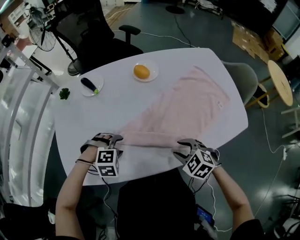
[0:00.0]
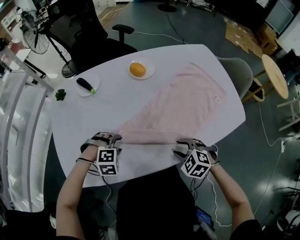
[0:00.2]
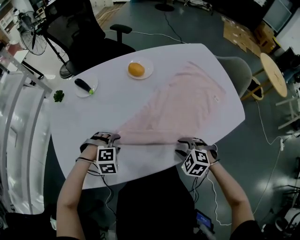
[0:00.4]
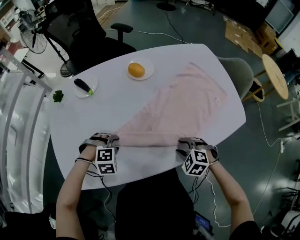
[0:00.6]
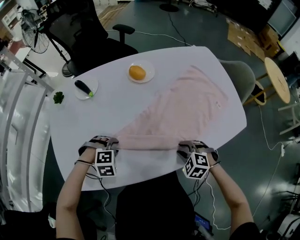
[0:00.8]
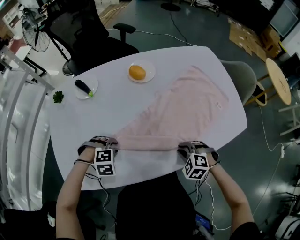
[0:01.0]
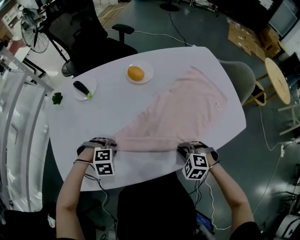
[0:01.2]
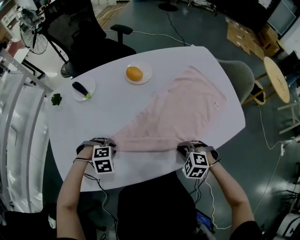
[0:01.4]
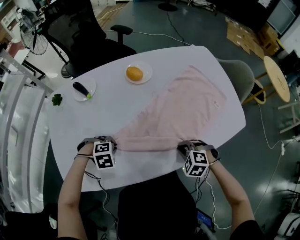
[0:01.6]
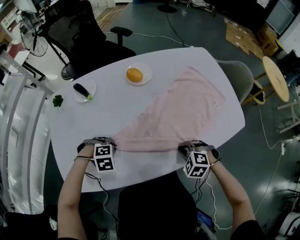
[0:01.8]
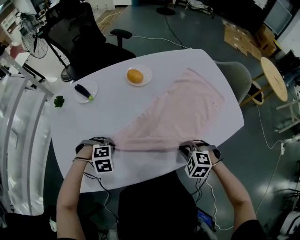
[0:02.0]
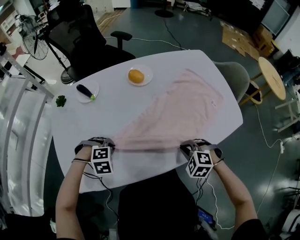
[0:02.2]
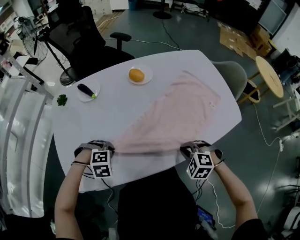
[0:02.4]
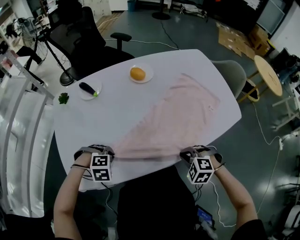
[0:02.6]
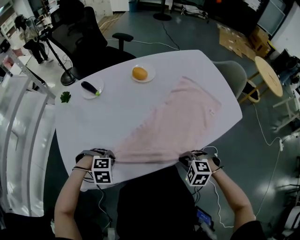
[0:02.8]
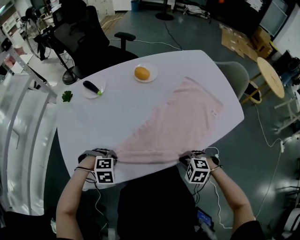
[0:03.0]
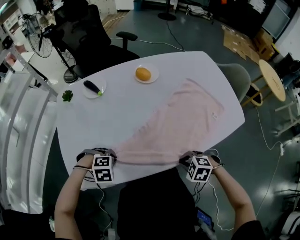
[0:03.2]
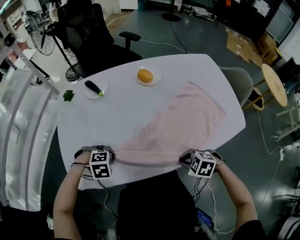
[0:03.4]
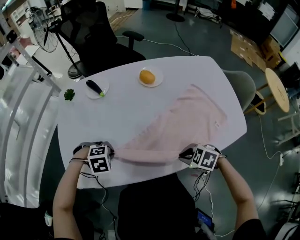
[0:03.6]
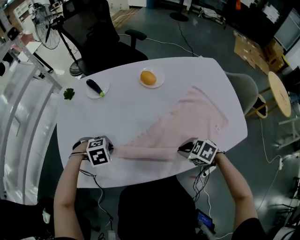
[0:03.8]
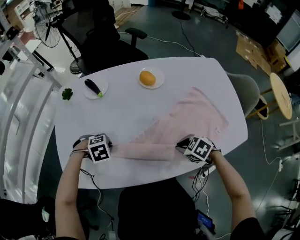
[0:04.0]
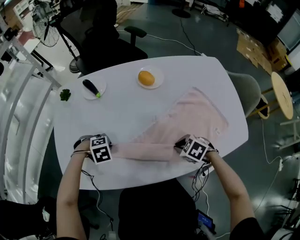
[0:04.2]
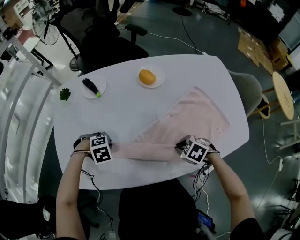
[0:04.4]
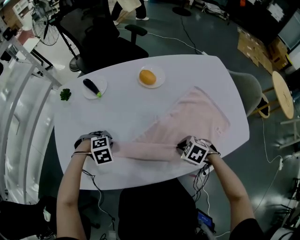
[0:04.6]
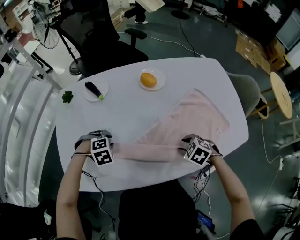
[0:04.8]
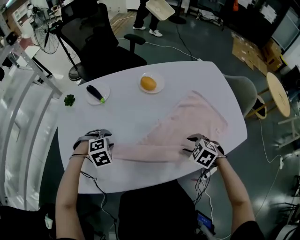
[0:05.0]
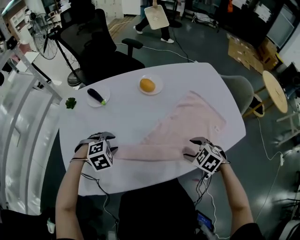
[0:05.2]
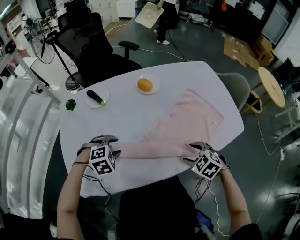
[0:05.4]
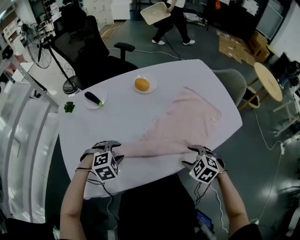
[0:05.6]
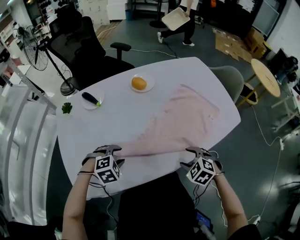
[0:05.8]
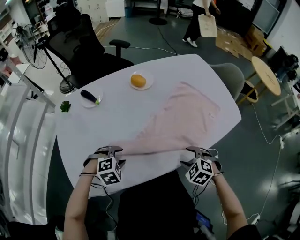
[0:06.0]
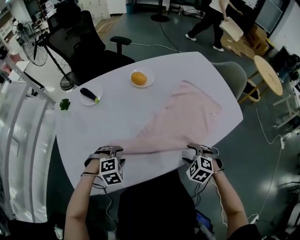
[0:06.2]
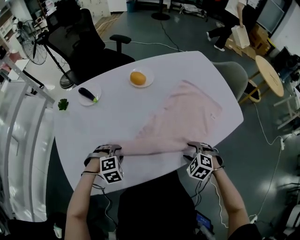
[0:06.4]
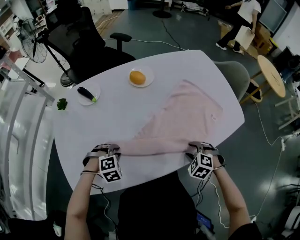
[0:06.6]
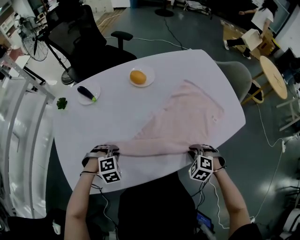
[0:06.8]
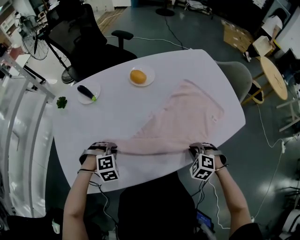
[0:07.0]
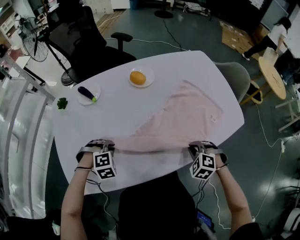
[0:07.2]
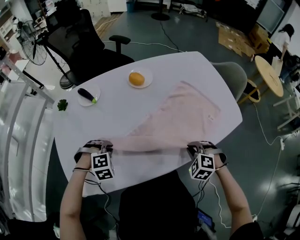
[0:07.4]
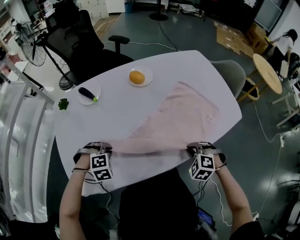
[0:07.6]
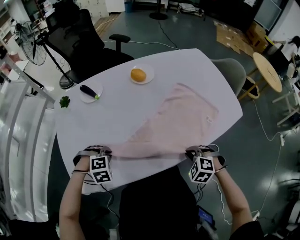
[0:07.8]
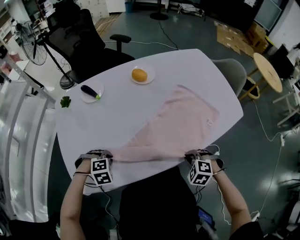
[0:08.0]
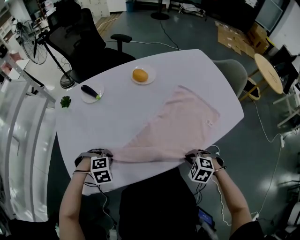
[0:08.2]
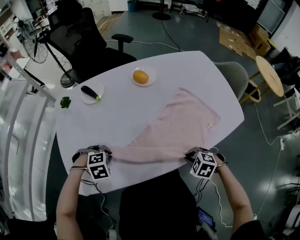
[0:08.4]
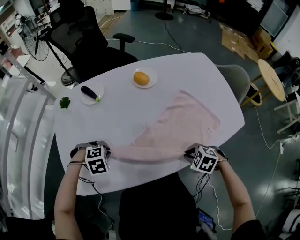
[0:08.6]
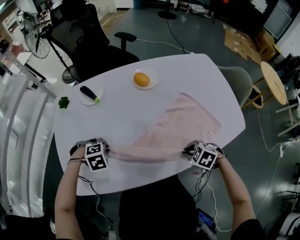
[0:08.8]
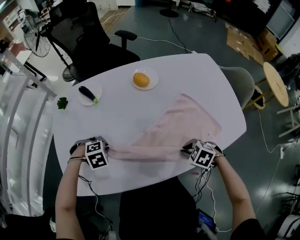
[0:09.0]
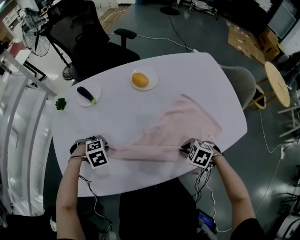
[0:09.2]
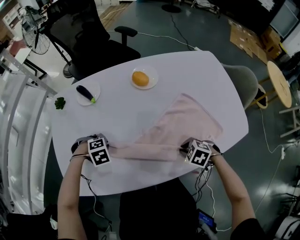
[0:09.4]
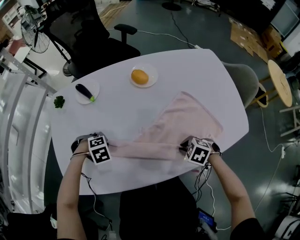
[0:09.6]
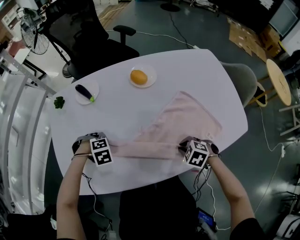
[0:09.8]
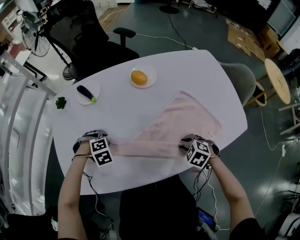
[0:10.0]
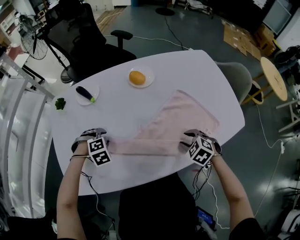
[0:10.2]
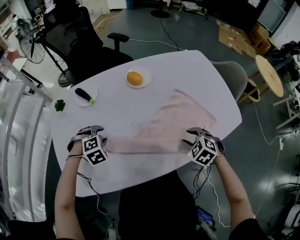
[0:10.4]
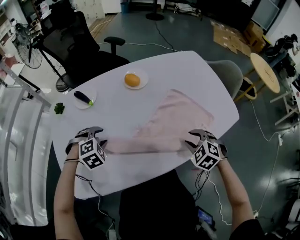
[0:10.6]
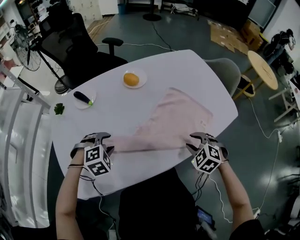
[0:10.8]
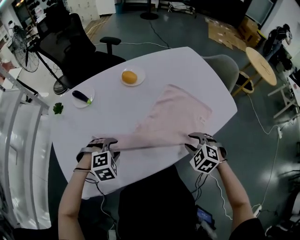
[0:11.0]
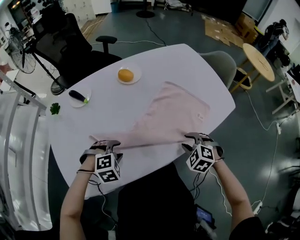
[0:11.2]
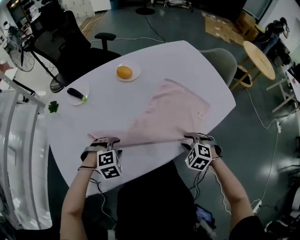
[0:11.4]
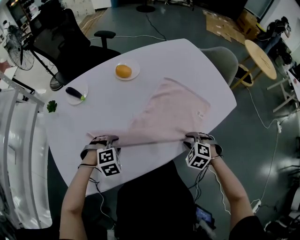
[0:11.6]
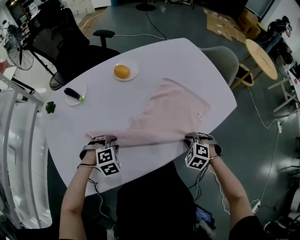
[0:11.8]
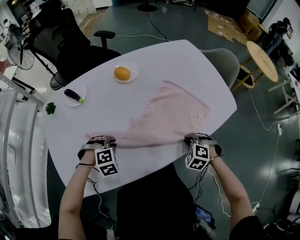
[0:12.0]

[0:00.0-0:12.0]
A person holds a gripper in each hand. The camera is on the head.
0:00.0 to 0:01.6: The left gripper moves roughly 5 cm, and closes up. The right gripper travels downward by roughly 5 cm, and closes.
0:01.6 to 0:03.0: The left gripper ends up about 10 cm from where it was; the right gripper shifts by roughly 10 cm.
0:03.0 to 0:04.4: The right gripper ends up some 15 cm from where it was; the left gripper ends up some 10 cm from where it was, and changes its angle by some 20 degrees.
0:04.4 to 0:06.0: The right gripper changes place by some 10 cm, turns by some 30 degrees, and opens up. Meanwhile the left gripper moves roughly 10 cm, swivels about 20 degrees, and opens up.
0:06.0 to 0:07.6: The right gripper closes, while the left gripper moves approximately 5 cm, and closes.
0:07.6 to 0:09.0: The right gripper shifts by approximately 5 cm, and swivels about 30 degrees.
0:09.0 to 0:10.4: The right gripper ends up about 5 cm from where it was, swivels approximately 20 degrees, and opens up, while the left gripper ends up some 5 cm from where it was, and opens.
0:10.4 to 0:12.0: The right gripper is displaced to the right and downward by some 5 cm, and closes up; the left gripper goes approximately 10 cm to the right, and closes.

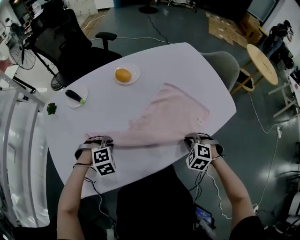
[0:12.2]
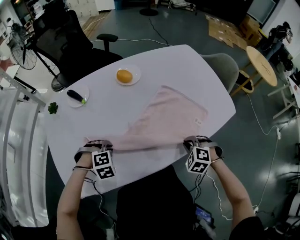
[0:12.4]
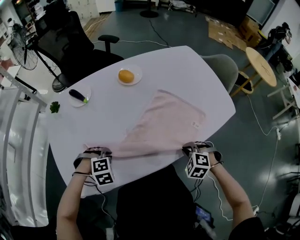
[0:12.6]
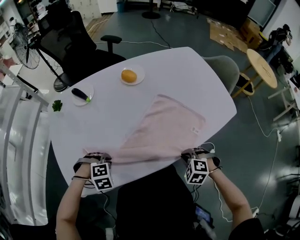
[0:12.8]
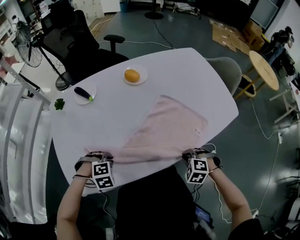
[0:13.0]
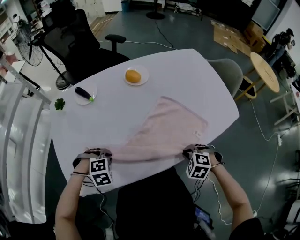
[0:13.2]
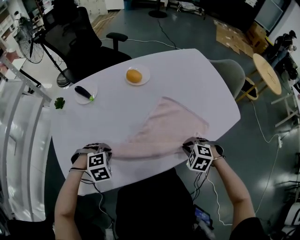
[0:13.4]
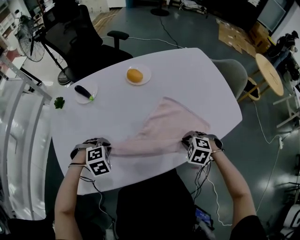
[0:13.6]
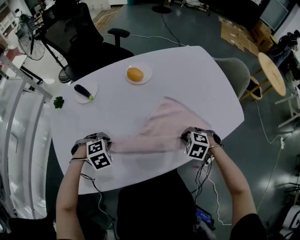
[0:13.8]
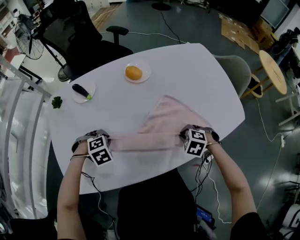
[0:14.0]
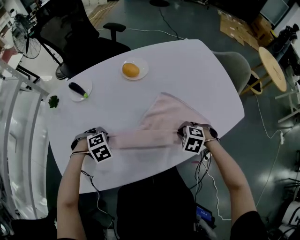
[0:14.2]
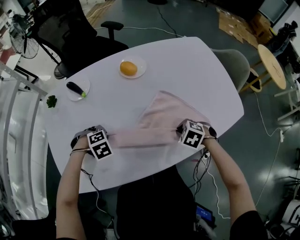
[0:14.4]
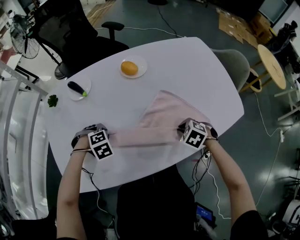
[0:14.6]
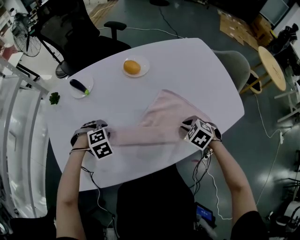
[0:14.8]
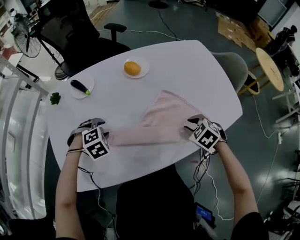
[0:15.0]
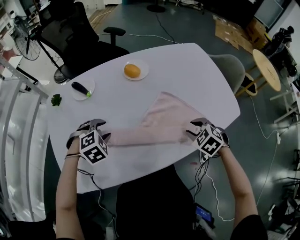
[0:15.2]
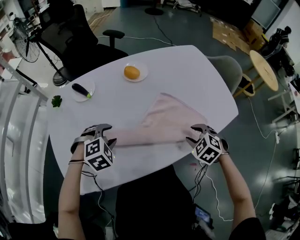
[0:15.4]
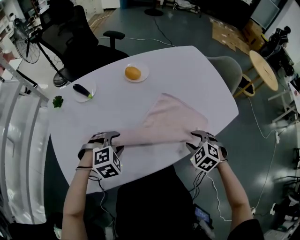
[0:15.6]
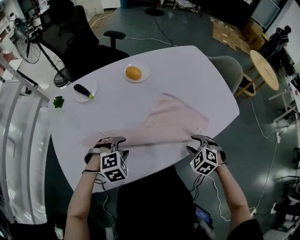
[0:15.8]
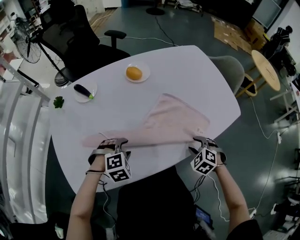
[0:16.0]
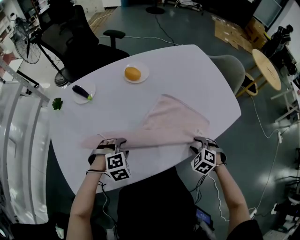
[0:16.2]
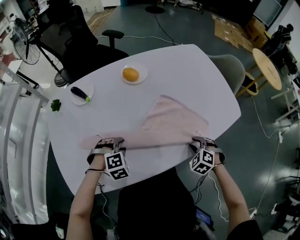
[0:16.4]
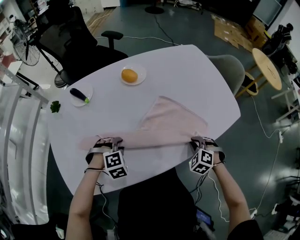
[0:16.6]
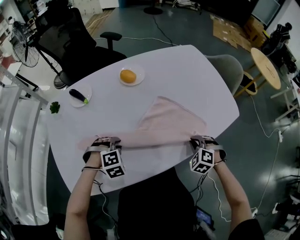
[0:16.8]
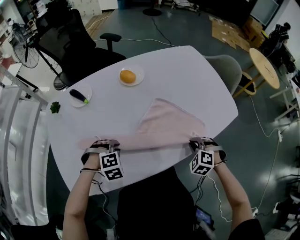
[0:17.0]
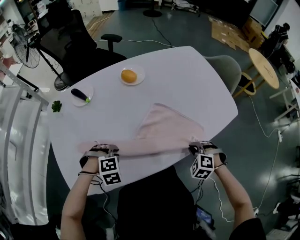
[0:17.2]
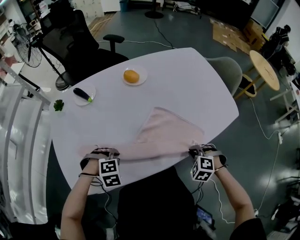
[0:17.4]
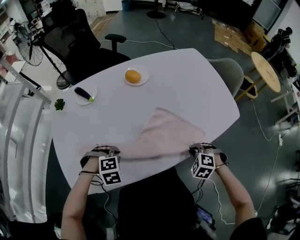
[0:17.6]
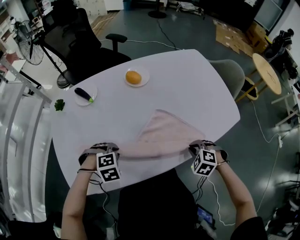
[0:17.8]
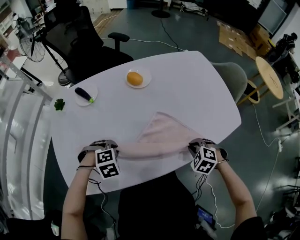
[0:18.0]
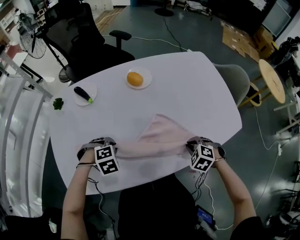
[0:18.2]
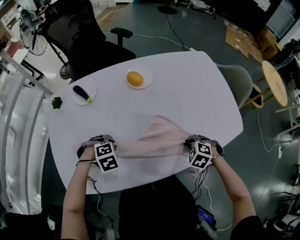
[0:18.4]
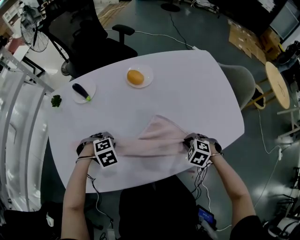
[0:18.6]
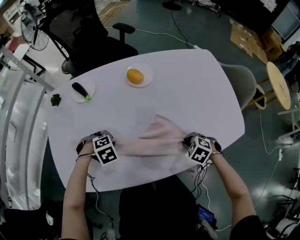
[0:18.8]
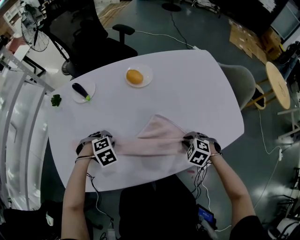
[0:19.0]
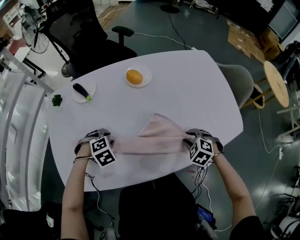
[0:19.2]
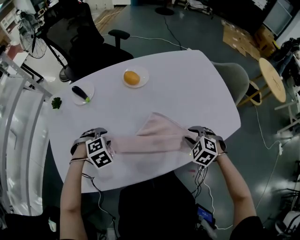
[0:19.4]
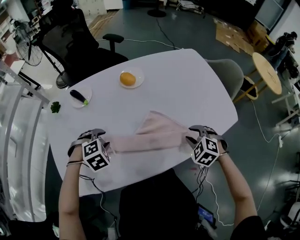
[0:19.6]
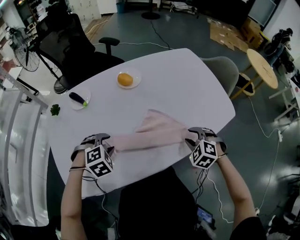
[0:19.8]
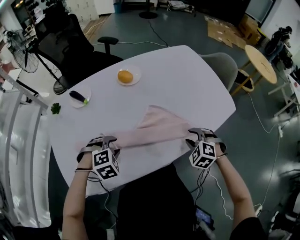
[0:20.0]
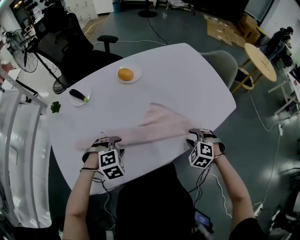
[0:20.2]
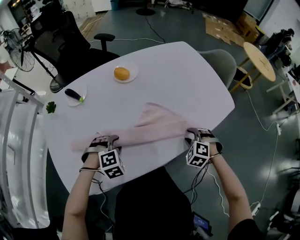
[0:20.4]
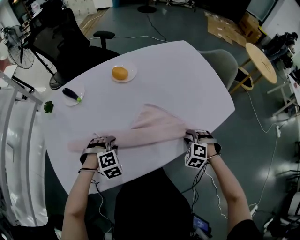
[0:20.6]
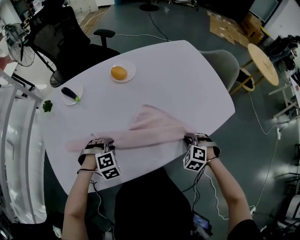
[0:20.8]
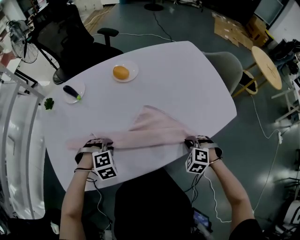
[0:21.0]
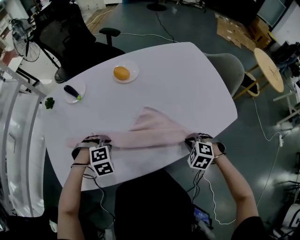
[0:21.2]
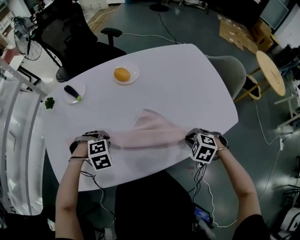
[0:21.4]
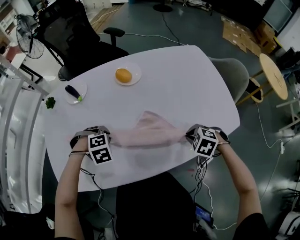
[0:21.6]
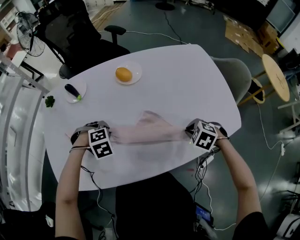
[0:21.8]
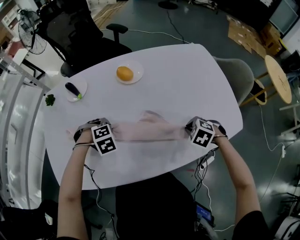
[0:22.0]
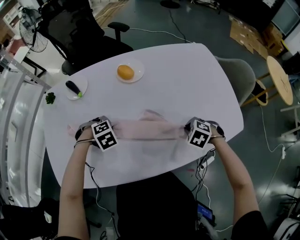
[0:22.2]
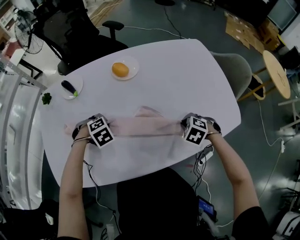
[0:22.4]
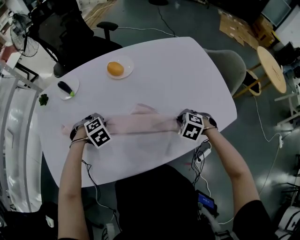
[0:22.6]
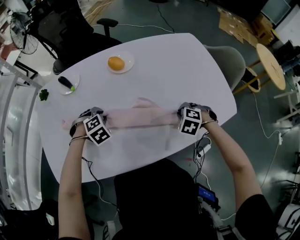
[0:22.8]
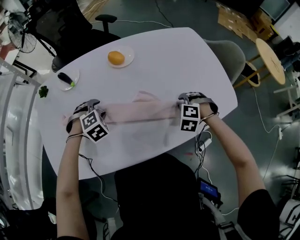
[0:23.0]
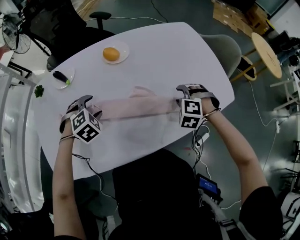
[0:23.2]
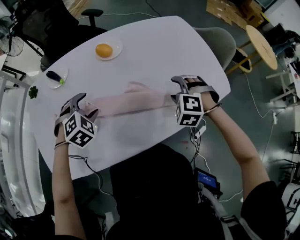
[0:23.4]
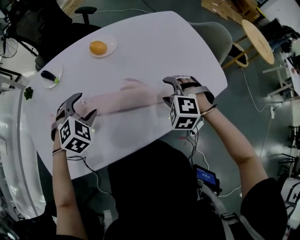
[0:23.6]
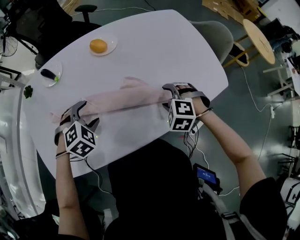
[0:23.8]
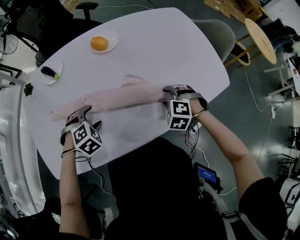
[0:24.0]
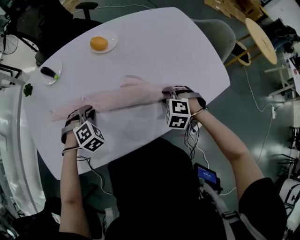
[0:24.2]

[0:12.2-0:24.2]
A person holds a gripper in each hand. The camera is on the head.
0:13.8 to 0:15.2: The left gripper shifts by about 5 cm, and opens its fingers. Meanwhile the right gripper goes about 5 cm upward, rotates some 20 degrees, and opens.
0:15.2 to 0:16.6: The left gripper shifts some 10 cm to the right and downward. The right gripper travels downward and to the right by about 10 cm.
0:16.6 to 0:18.2: The right gripper moves about 5 cm backward and comes back. The left gripper moves roughly 10 cm backward and comes back.
0:18.2 to 0:19.8: The left gripper is displaced upward by some 5 cm; the right gripper opens its fingers.
0:19.8 to 0:21.2: The two grippers go approximately 5 cm downward. The left gripper closes; the right gripper closes up.
0:21.2 to 0:22.6: The right gripper shifts by some 10 cm. The left gripper ends up some 10 cm from where it was.
0:22.6 to 0:24.2: The left gripper moves approximately 10 cm upward and comes back, and opens, then closes again, while the right gripper moves roughly 10 cm upward and comes back, and opens.
